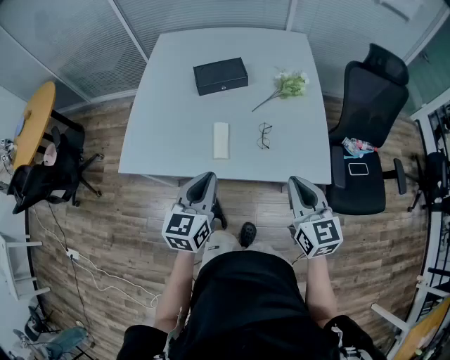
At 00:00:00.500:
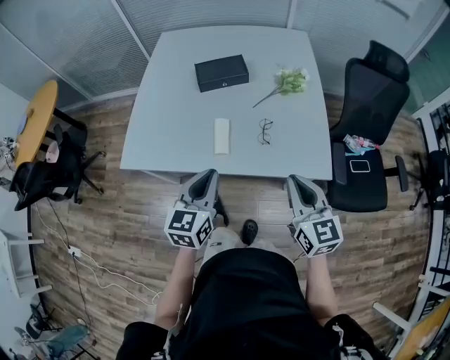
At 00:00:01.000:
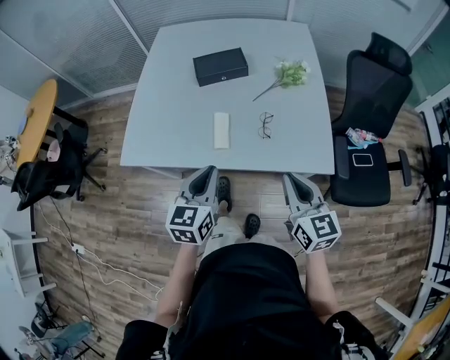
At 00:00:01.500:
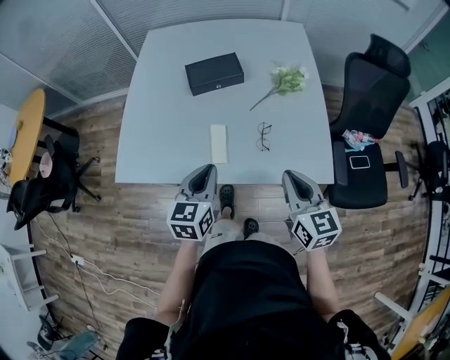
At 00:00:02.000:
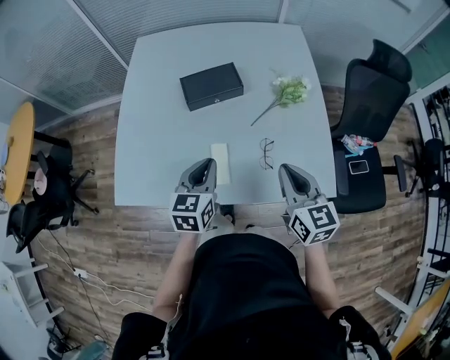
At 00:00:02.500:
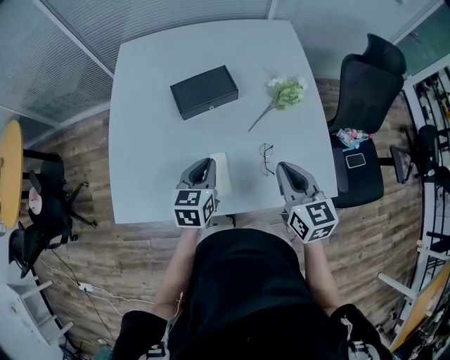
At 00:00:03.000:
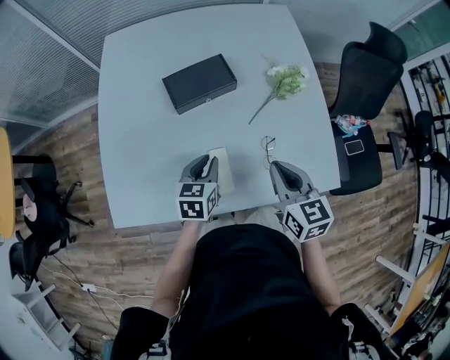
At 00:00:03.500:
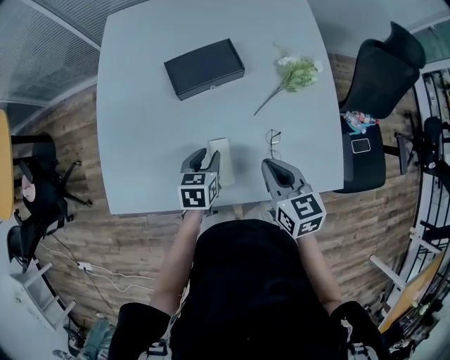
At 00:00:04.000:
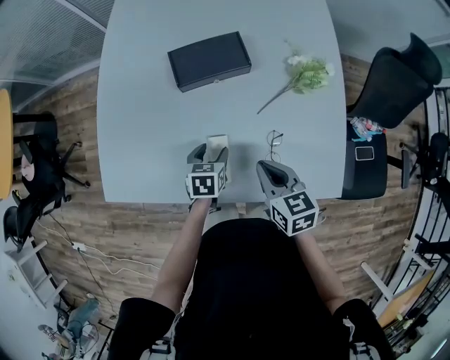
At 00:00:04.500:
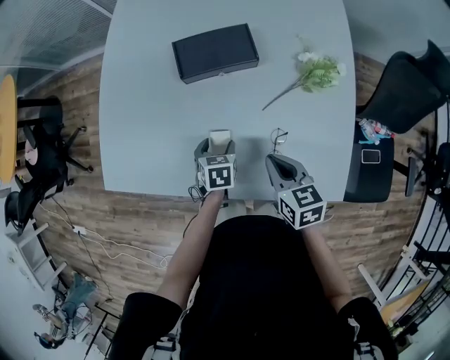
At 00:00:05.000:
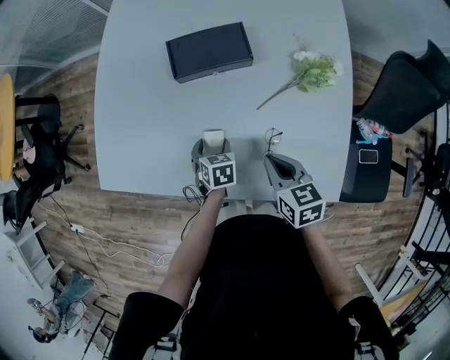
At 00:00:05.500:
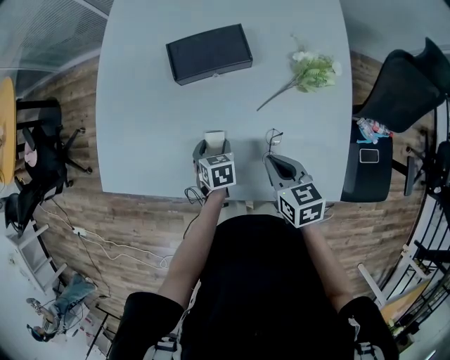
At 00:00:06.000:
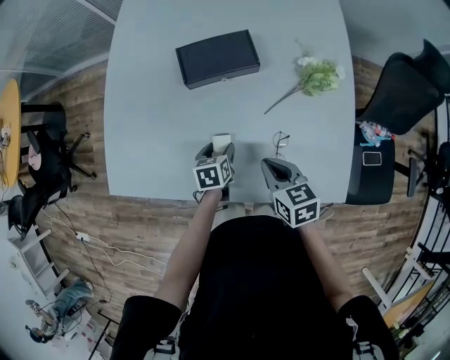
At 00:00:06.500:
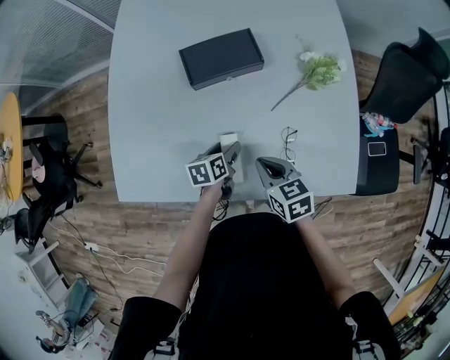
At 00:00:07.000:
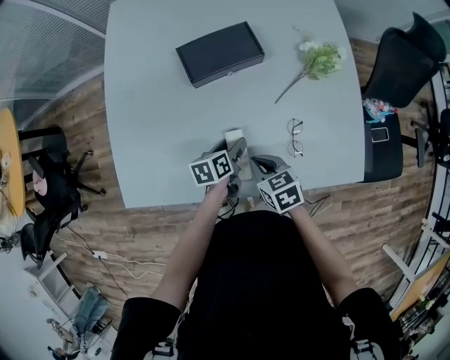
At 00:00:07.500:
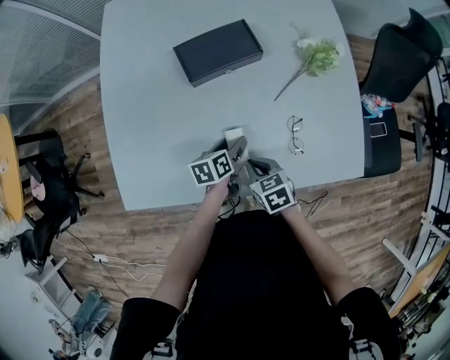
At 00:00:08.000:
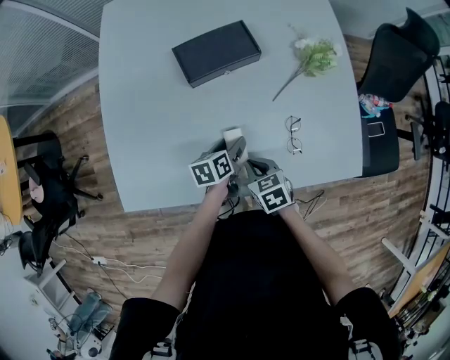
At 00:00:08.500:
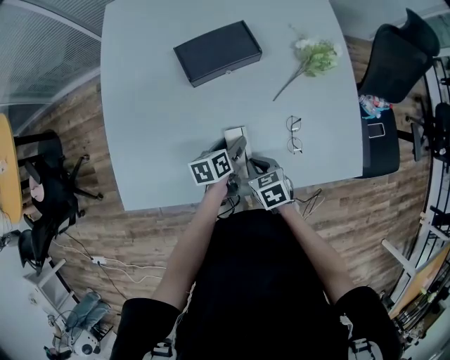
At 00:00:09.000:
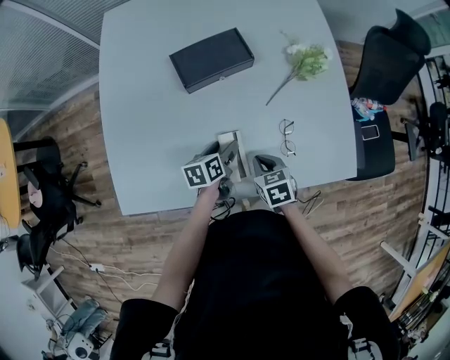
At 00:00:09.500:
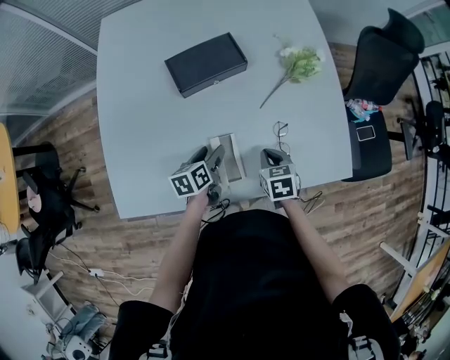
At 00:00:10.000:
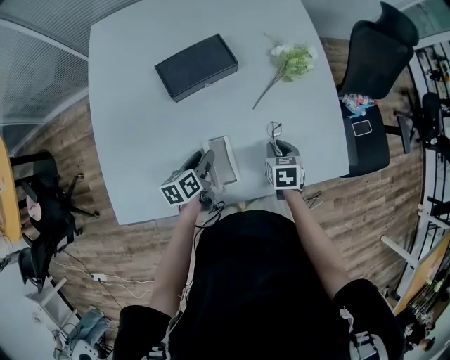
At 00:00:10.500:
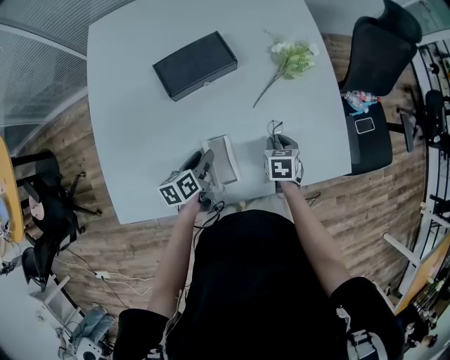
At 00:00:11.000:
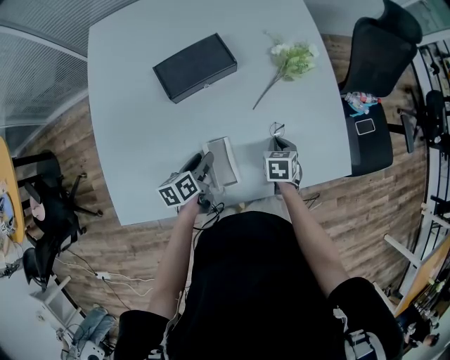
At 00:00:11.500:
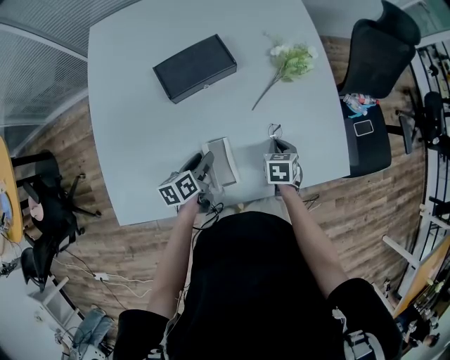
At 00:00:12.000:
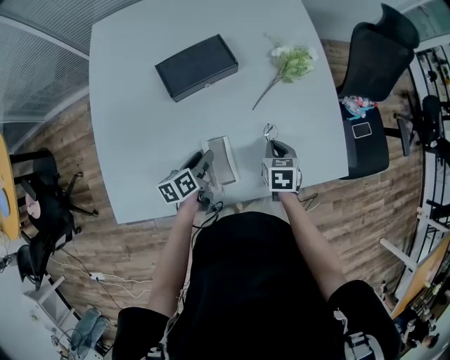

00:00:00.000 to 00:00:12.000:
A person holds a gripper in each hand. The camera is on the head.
00:00:00.000 to 00:00:02.000: The two grippers go some 20 cm forward.
00:00:02.000 to 00:00:04.000: The right gripper goes some 15 cm downward, forward and to the left, and turns by approximately 30 degrees, while the left gripper goes about 25 cm downward and forward, turns by roughly 30 degrees, and opens its fingers.
00:00:06.000 to 00:00:08.000: The left gripper changes its angle by approximately 20 degrees. The right gripper shifts about 15 cm to the left and downward.
00:00:08.000 to 00:00:10.000: The right gripper moves to the right and forward, roughly 15 cm, and rotates roughly 30 degrees.
00:00:10.000 to 00:00:12.000: The grippers make only small movements.

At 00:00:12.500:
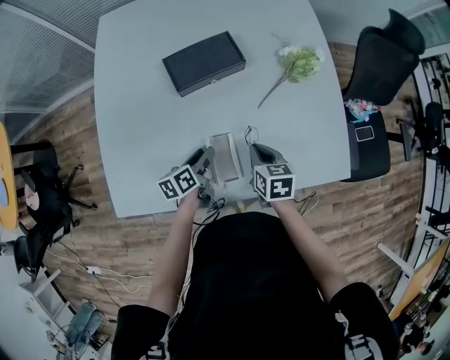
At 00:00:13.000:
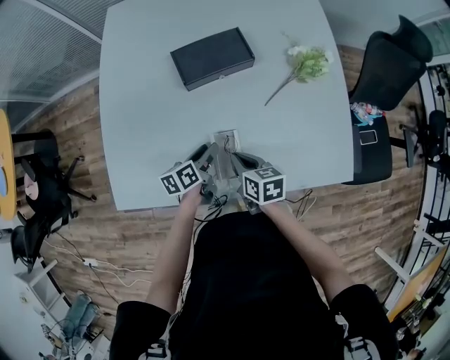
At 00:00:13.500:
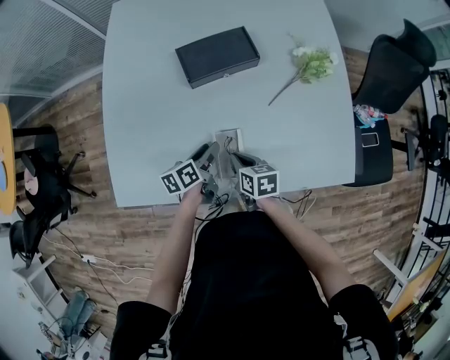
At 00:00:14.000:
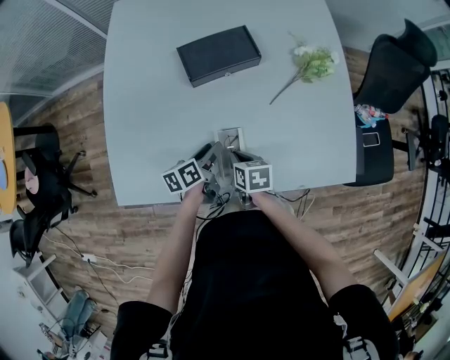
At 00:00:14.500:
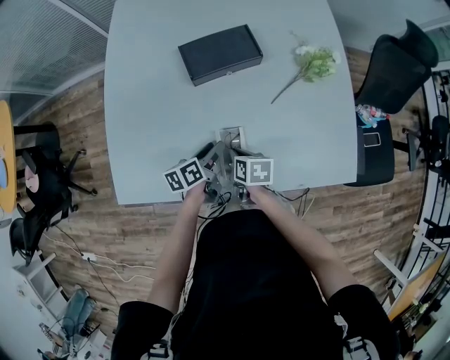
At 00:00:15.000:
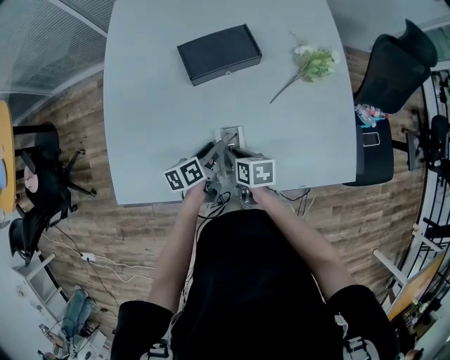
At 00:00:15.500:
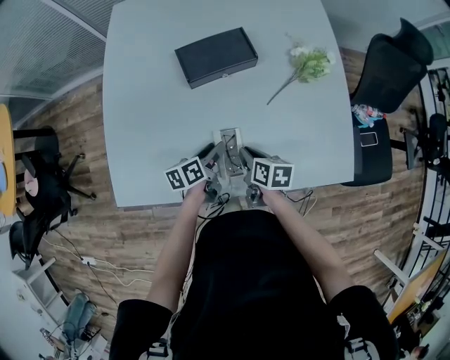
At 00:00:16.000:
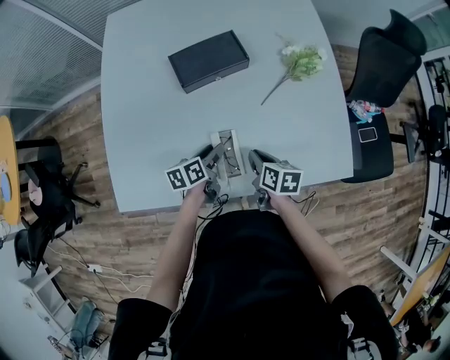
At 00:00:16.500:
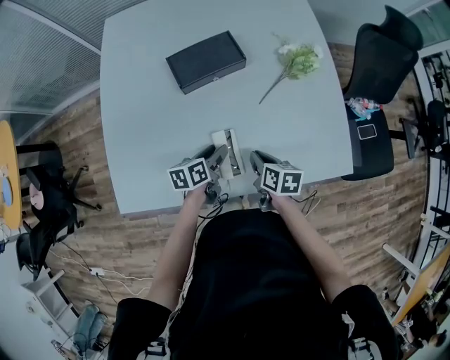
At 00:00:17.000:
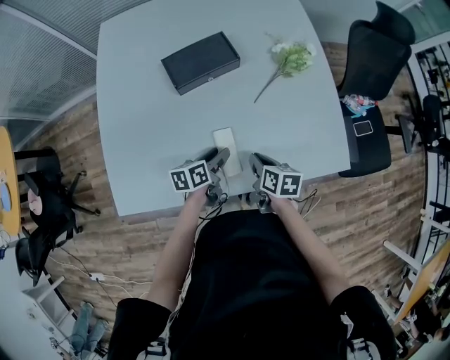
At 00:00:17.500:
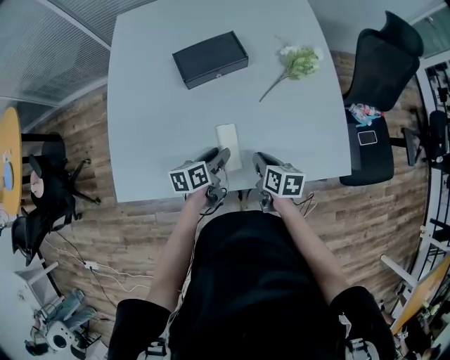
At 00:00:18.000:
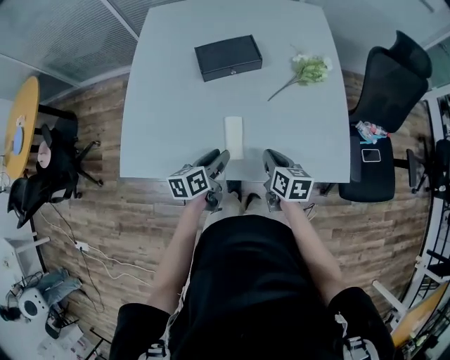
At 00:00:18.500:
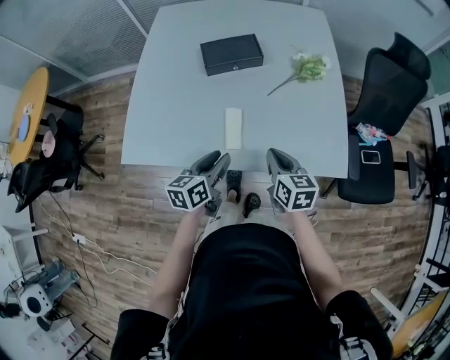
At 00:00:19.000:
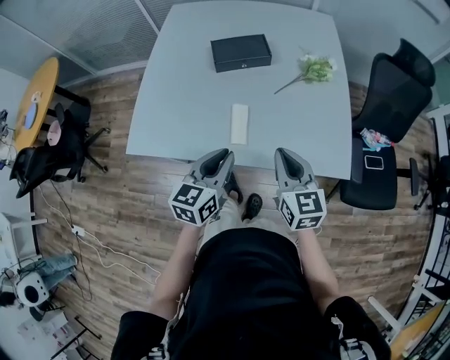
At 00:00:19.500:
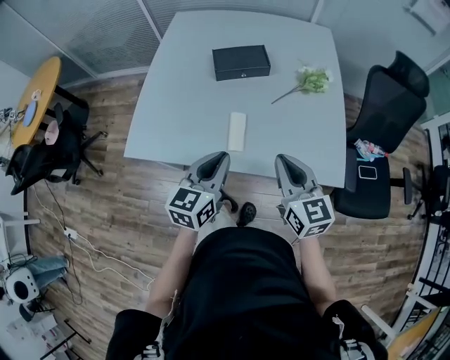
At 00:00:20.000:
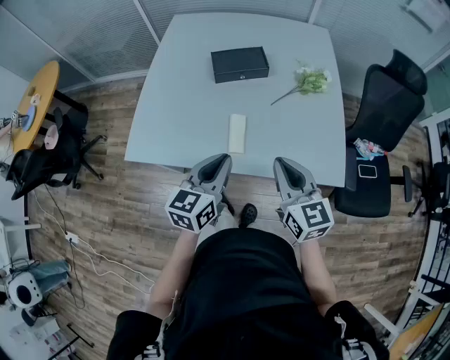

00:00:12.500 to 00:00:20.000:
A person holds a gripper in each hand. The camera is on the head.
00:00:12.500 to 00:00:14.500: The right gripper shifts some 10 cm to the left and downward.
00:00:14.500 to 00:00:16.500: The right gripper shifts about 10 cm to the right.
00:00:16.500 to 00:00:18.000: The left gripper travels backward and upward by about 15 cm. The right gripper moves upward and backward, approximately 10 cm.
00:00:18.000 to 00:00:20.000: Both grippers travel together upward and backward, about 20 cm. The right gripper rotates some 40 degrees. Meanwhile the left gripper swivels roughly 30 degrees, and closes its fingers.

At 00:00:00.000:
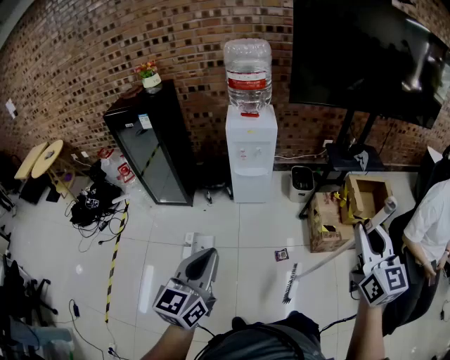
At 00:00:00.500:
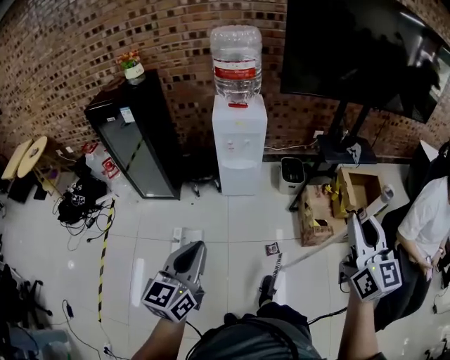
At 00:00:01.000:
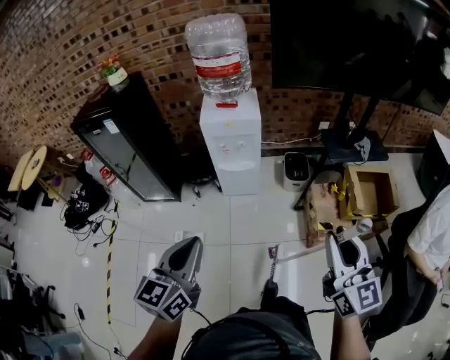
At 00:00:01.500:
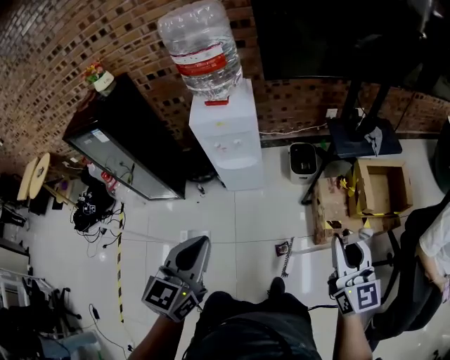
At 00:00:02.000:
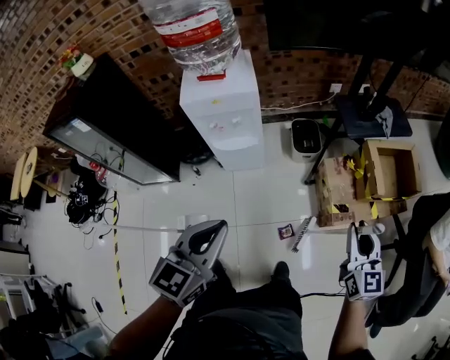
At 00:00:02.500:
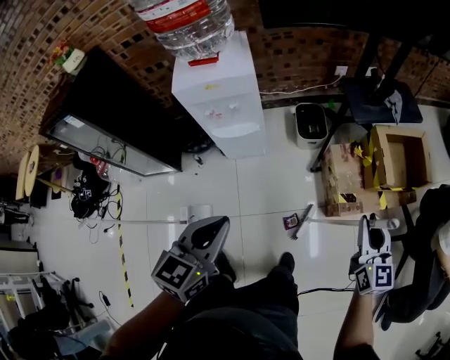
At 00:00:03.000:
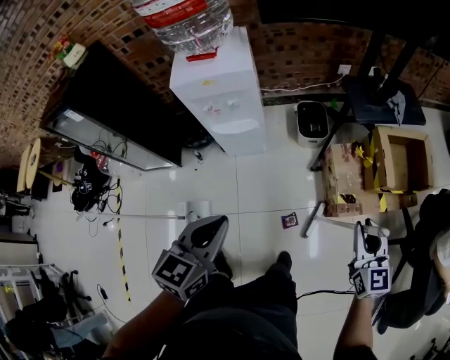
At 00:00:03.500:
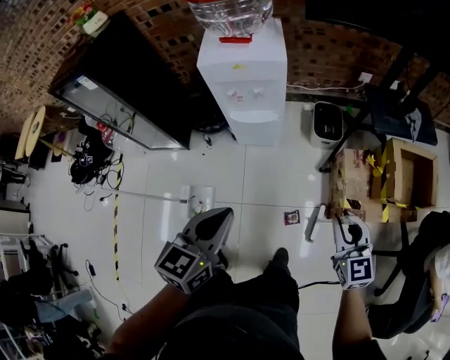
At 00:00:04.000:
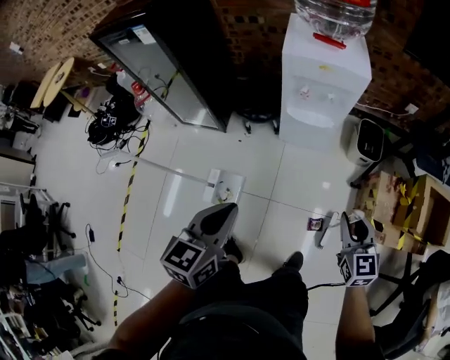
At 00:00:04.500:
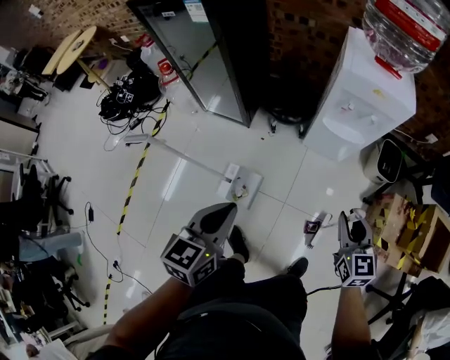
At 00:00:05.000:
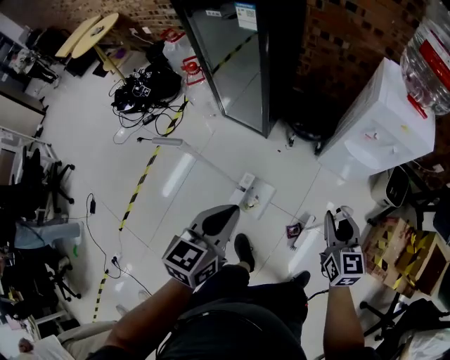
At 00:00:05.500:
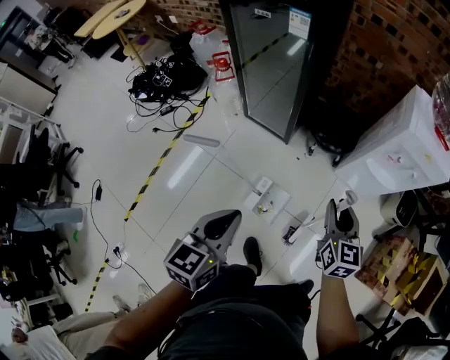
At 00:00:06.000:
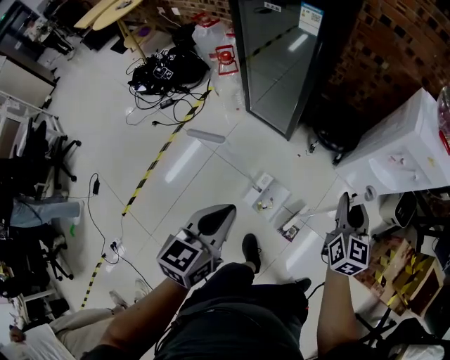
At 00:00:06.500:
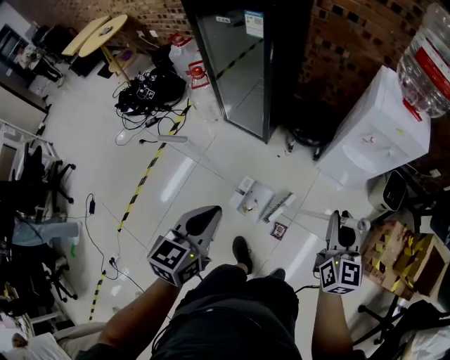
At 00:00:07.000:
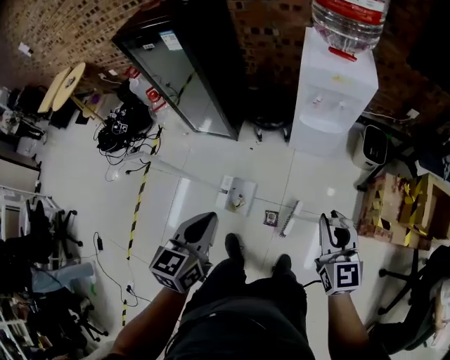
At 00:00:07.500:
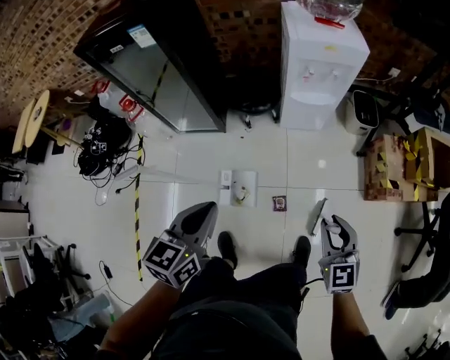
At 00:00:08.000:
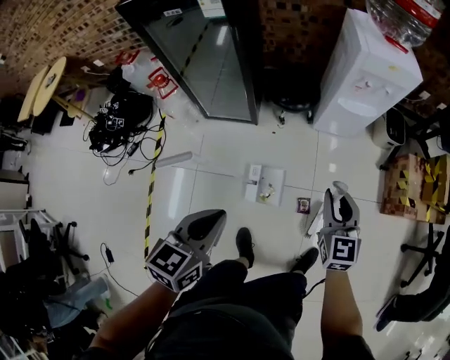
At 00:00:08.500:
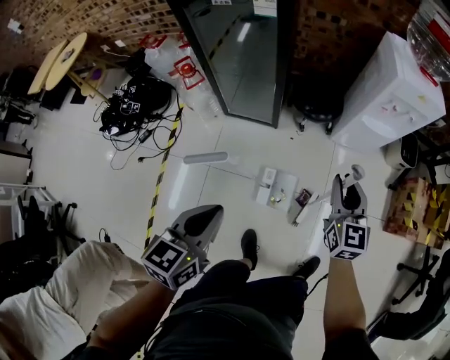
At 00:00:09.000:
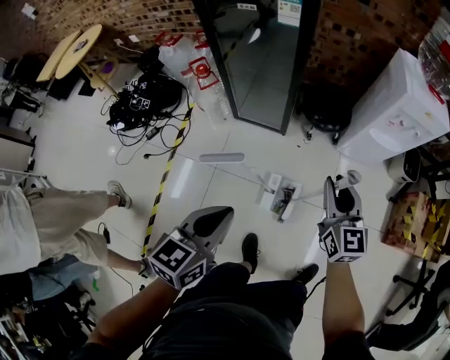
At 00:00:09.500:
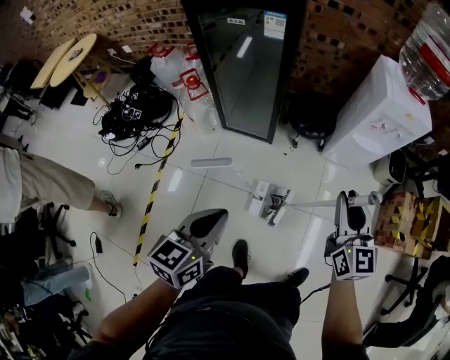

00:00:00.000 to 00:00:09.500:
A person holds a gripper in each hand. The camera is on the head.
00:00:00.000 to 00:00:02.000: The two grippers travel together, forward, some 40 cm. The right gripper shifts roughly 30 cm downward. The left gripper changes its angle by roughly 20 degrees.
00:00:02.000 to 00:00:04.000: Both grippers move to the left and downward, approximately 30 cm. The left gripper changes its angle by some 30 degrees. The right gripper rotates roughly 30 degrees.
00:00:04.000 to 00:00:05.500: The two grippers travel together, to the left, approximately 50 cm.
00:00:05.500 to 00:00:07.500: The left gripper is displaced to the right by approximately 15 cm, and rotates about 30 degrees, while the right gripper shifts some 30 cm backward and to the right.
00:00:07.500 to 00:00:09.500: The grippers both shift to the left by approximately 35 cm. The right gripper changes its angle by roughly 20 degrees.
